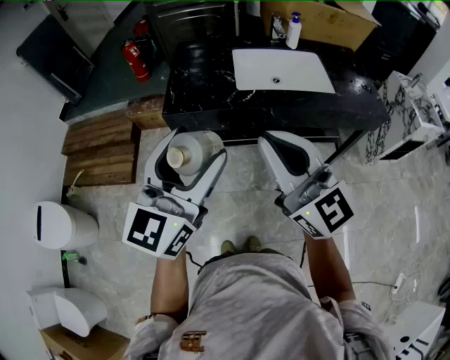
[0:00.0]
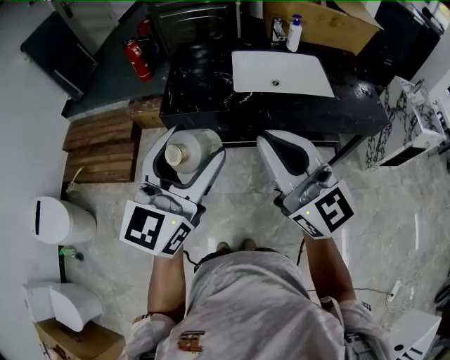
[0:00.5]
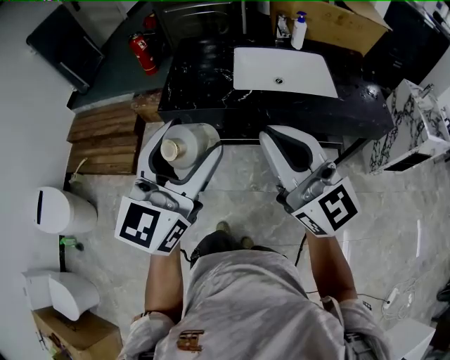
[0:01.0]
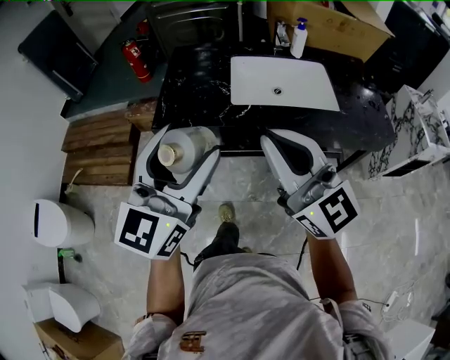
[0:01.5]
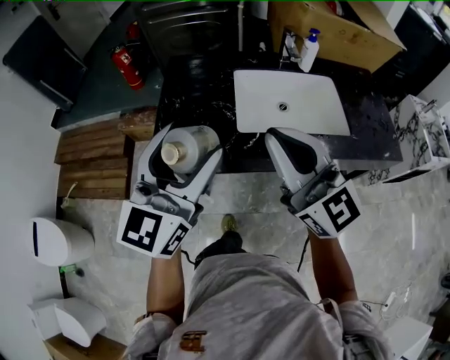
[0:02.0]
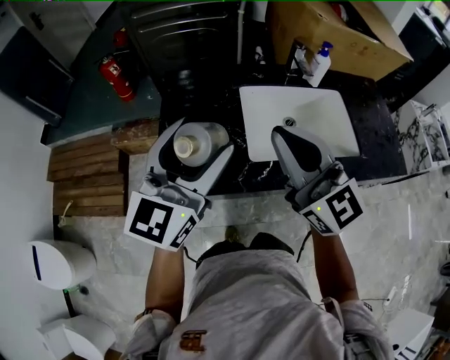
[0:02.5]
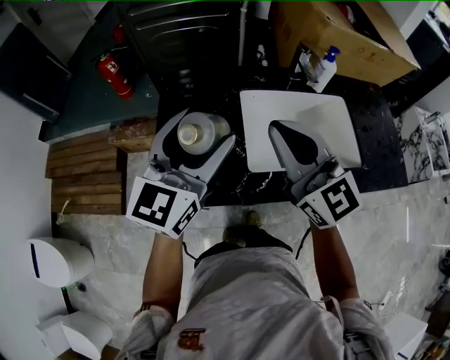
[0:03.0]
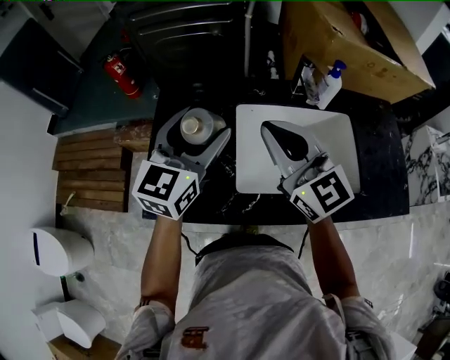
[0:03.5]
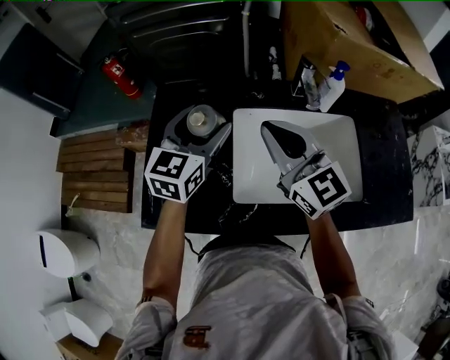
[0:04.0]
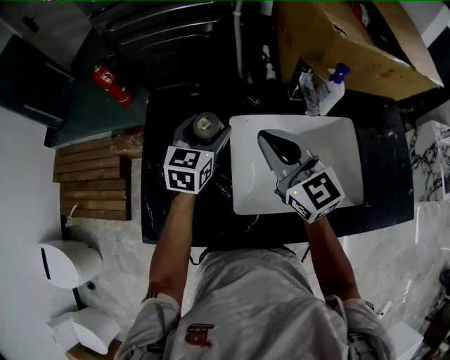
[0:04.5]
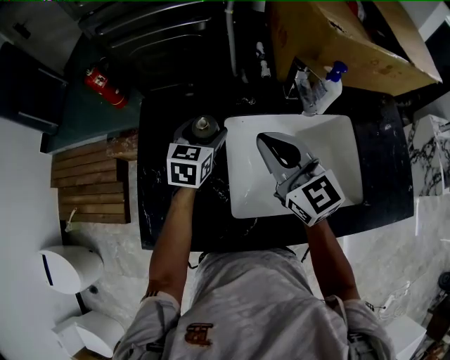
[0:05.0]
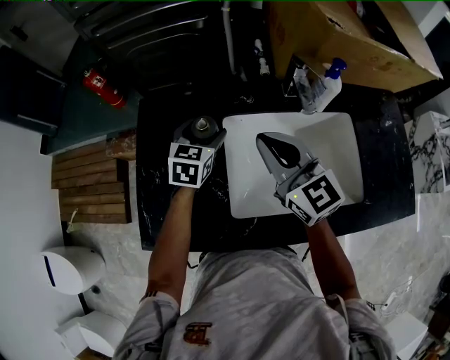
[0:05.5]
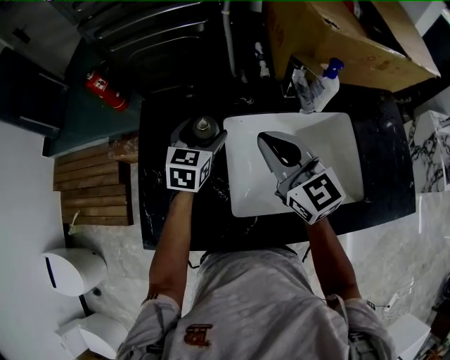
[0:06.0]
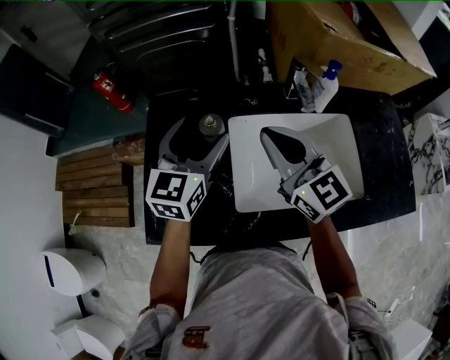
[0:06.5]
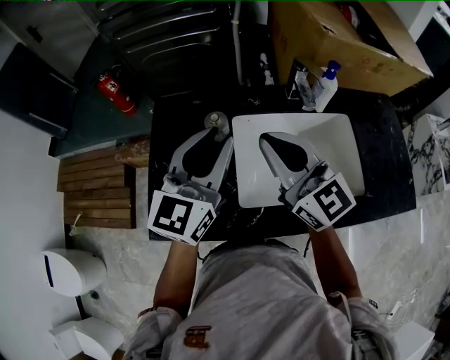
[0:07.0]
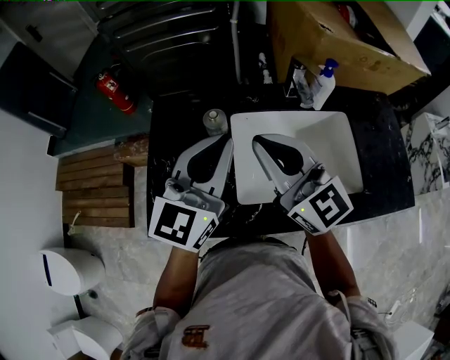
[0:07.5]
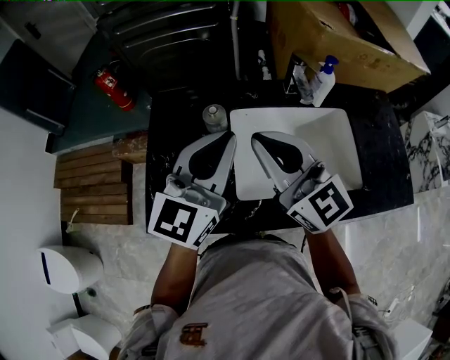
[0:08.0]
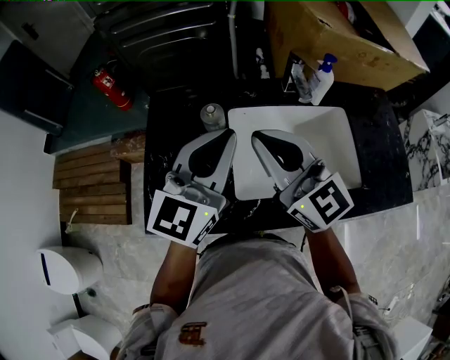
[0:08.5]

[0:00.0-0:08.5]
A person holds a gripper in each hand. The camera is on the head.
0:00.0 to 0:02.0: Both grippers travel together forward, approximately 20 cm.
0:02.0 to 0:04.0: Both grippers move forward, some 30 cm.
0:04.0 to 0:06.5: The left gripper moves about 15 cm downward and comes back.
0:06.5 to 0:08.5: The left gripper shifts some 10 cm backward and upward, and closes its fingers; the right gripper travels backward by about 5 cm.

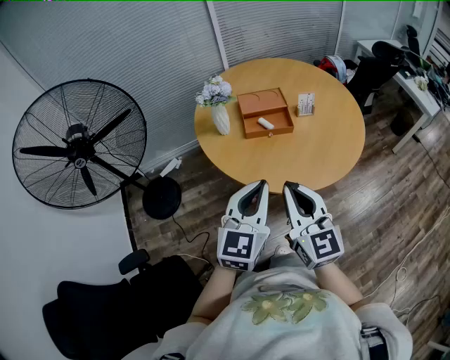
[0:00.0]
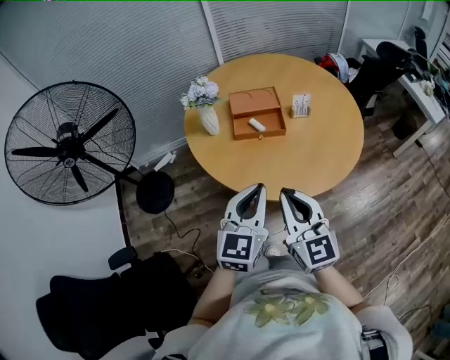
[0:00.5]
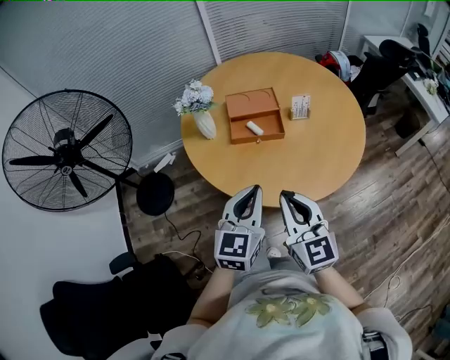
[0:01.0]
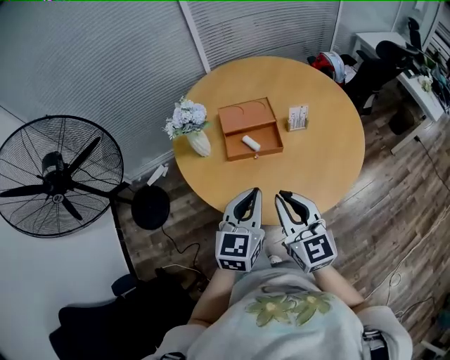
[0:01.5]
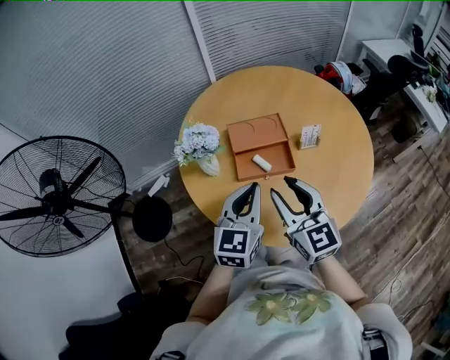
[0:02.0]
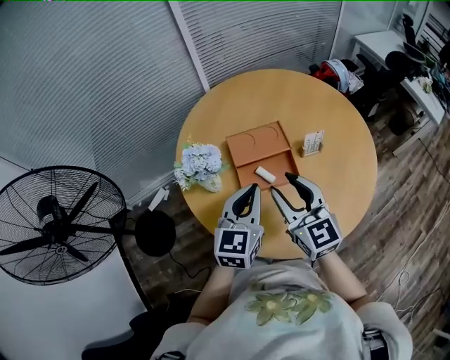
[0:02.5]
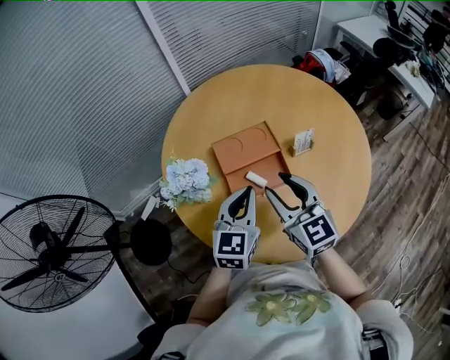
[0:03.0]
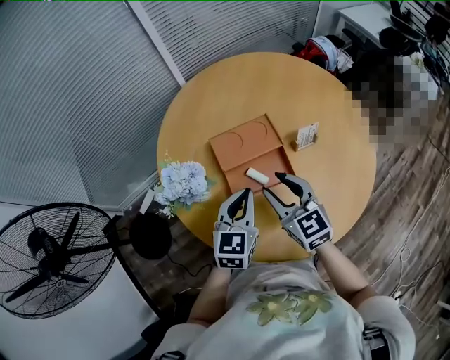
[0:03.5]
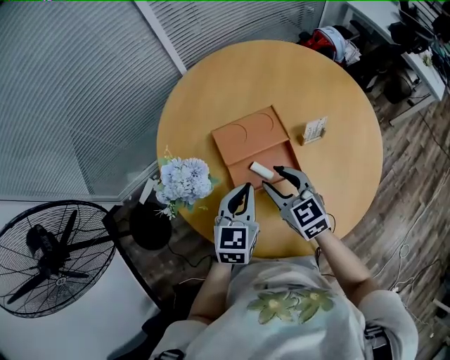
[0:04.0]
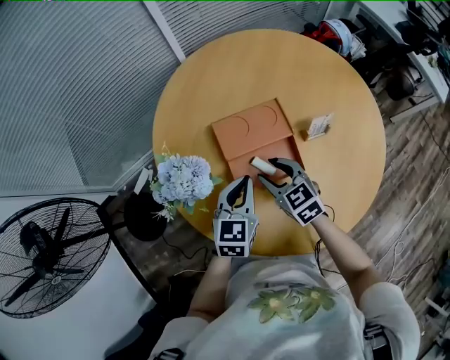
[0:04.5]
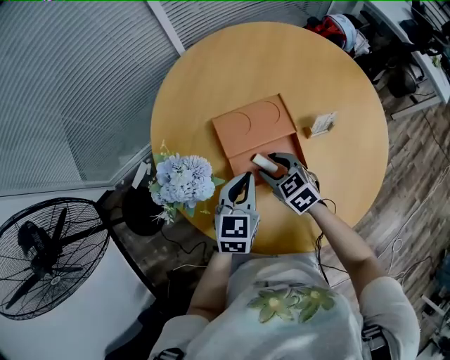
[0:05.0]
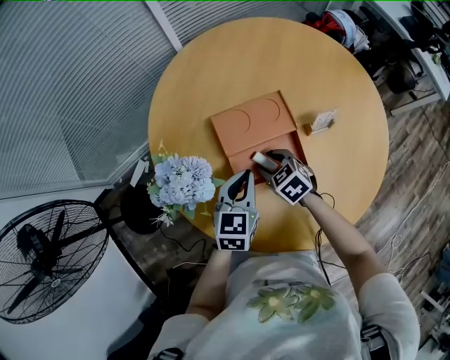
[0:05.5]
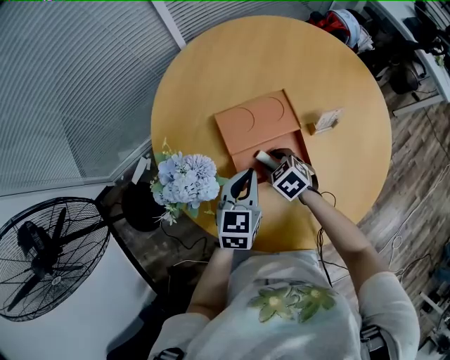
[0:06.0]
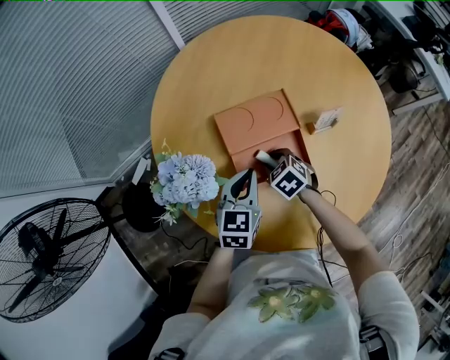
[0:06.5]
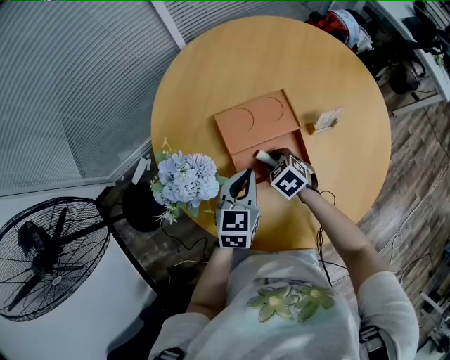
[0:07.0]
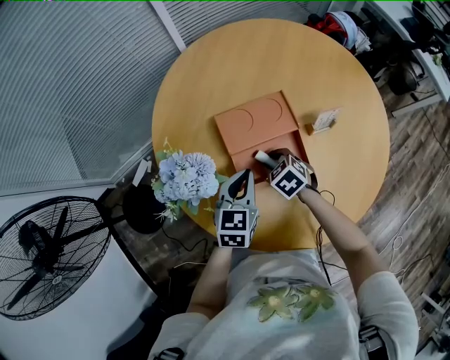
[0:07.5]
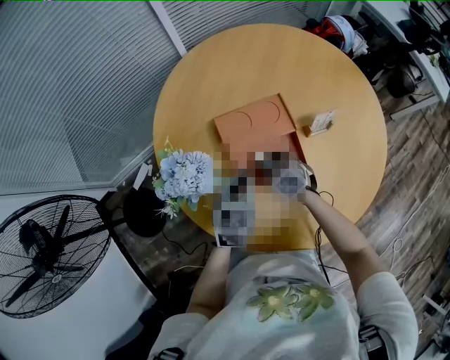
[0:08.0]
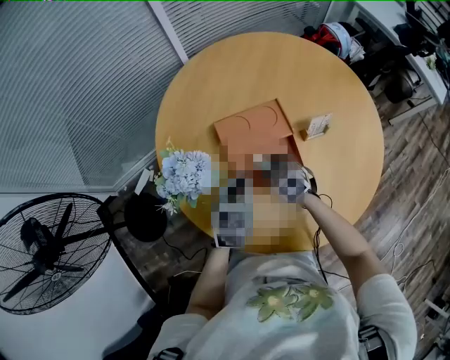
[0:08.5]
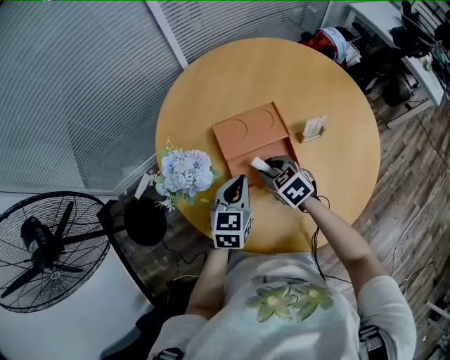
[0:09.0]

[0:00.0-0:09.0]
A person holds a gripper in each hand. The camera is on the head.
0:00.0 to 0:02.0: Both grippers travel together forward, some 30 cm. The right gripper opens its fingers.
0:02.0 to 0:04.5: Both grippers travel together downward and forward, about 25 cm. The right gripper turns by approximately 30 degrees.
0:04.5 to 0:07.0: The right gripper goes about 10 cm downward, and turns by approximately 30 degrees.
0:07.0 to 0:09.0: The right gripper is displaced upward by some 10 cm.

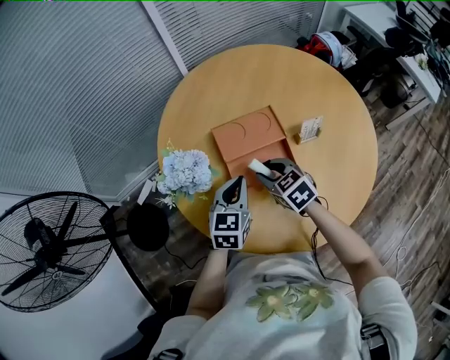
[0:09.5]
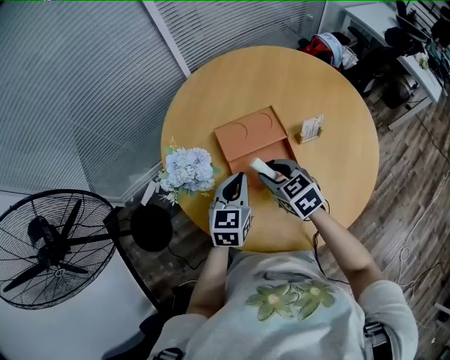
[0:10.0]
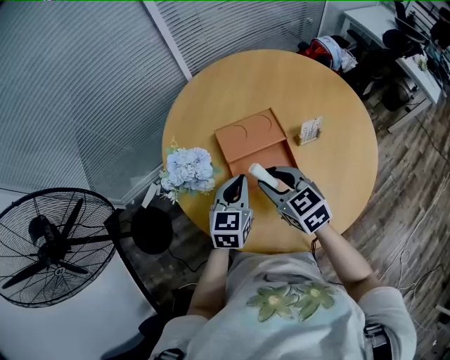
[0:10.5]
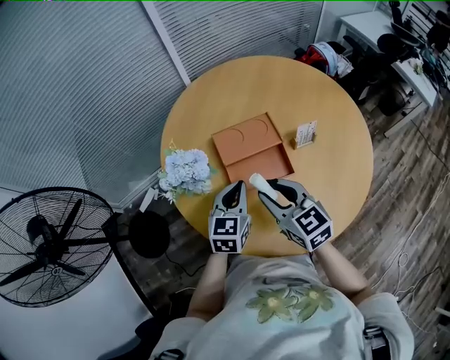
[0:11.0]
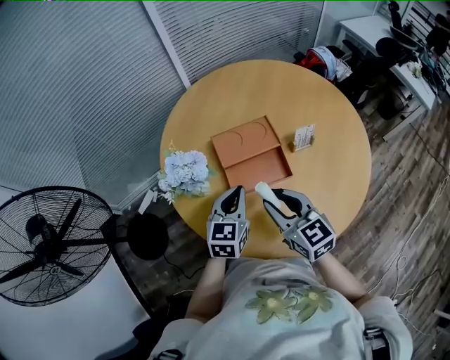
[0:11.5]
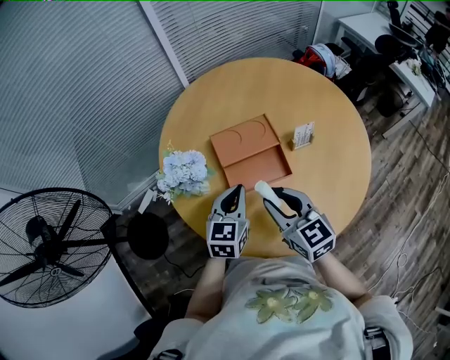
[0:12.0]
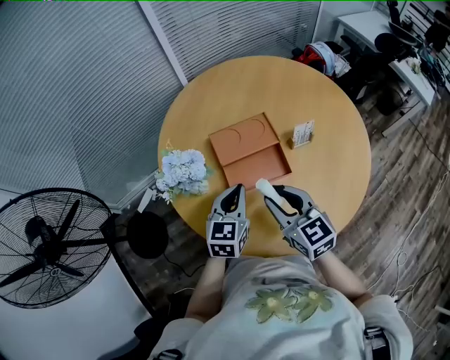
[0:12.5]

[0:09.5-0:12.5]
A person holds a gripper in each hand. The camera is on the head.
0:09.5 to 0:11.0: The right gripper travels upward and backward by roughly 15 cm, and changes its angle by roughly 20 degrees.
0:11.0 to 0:12.5: The grippers make only small movements.

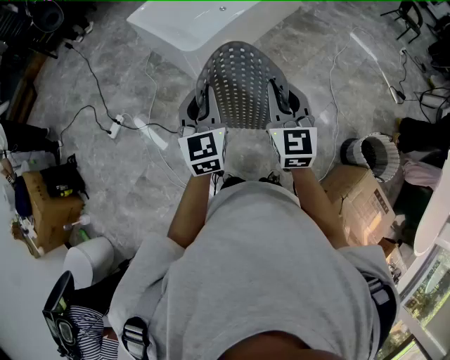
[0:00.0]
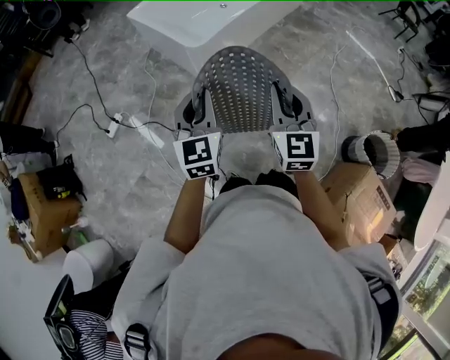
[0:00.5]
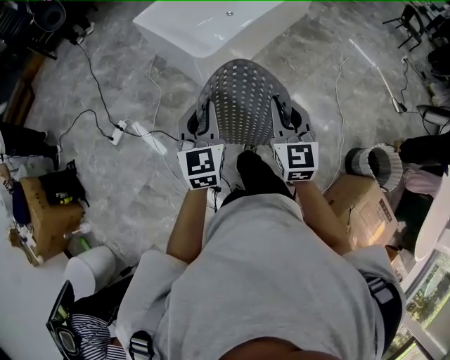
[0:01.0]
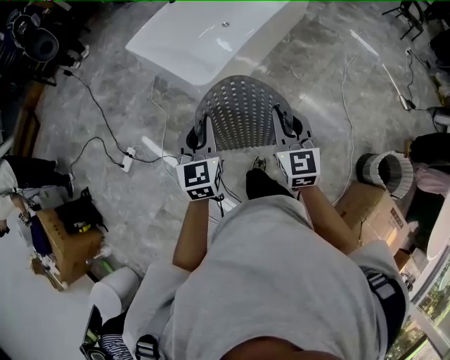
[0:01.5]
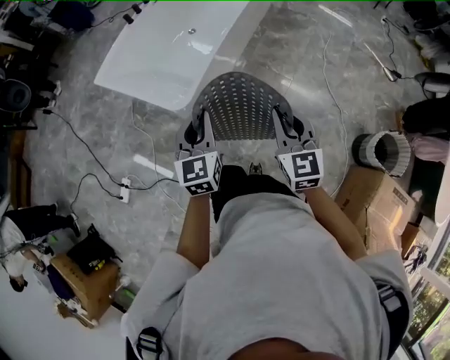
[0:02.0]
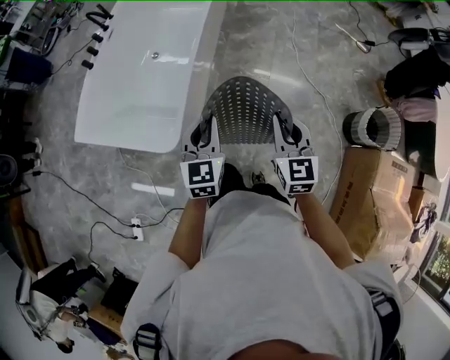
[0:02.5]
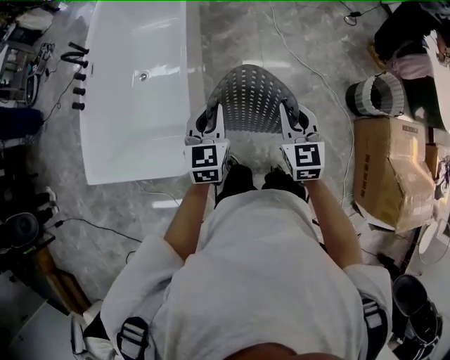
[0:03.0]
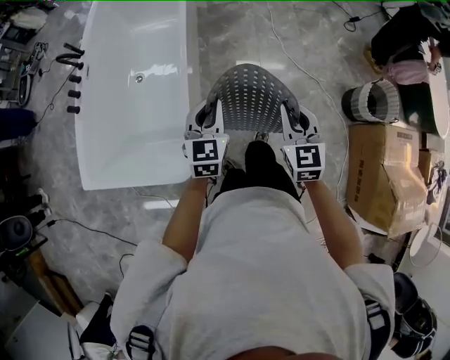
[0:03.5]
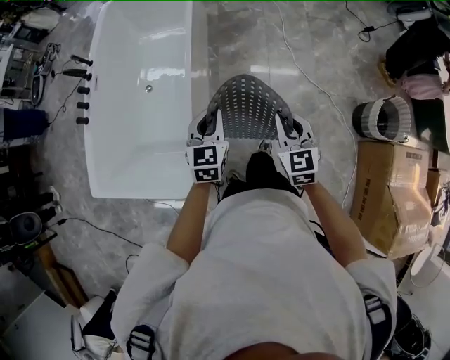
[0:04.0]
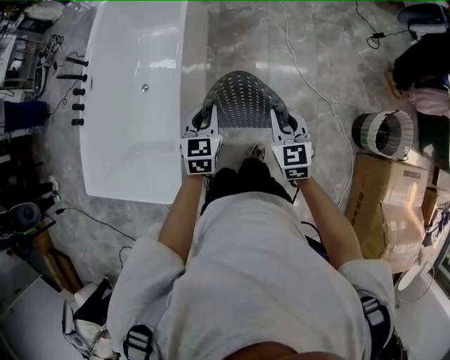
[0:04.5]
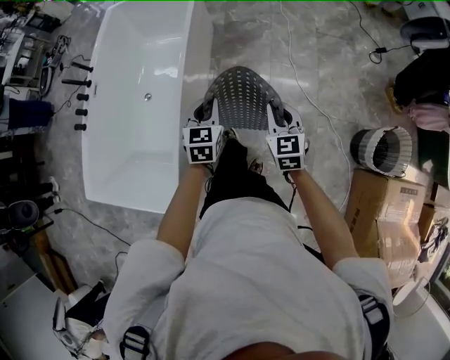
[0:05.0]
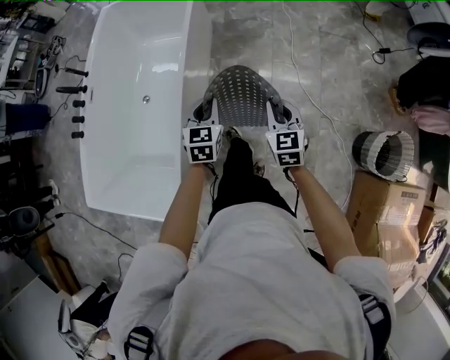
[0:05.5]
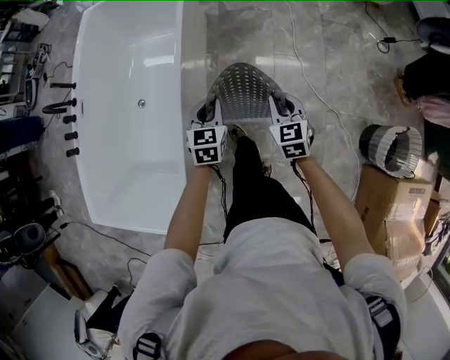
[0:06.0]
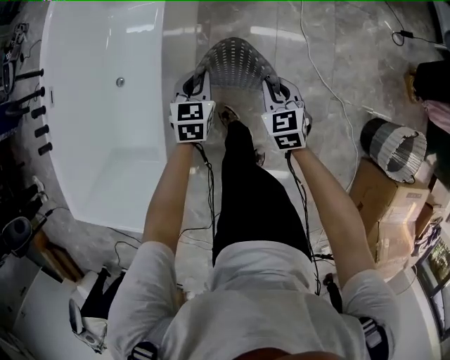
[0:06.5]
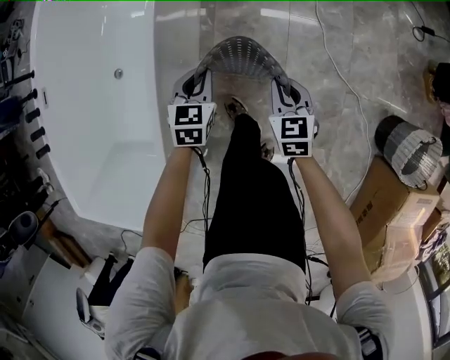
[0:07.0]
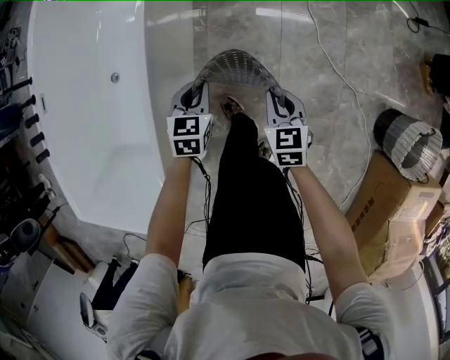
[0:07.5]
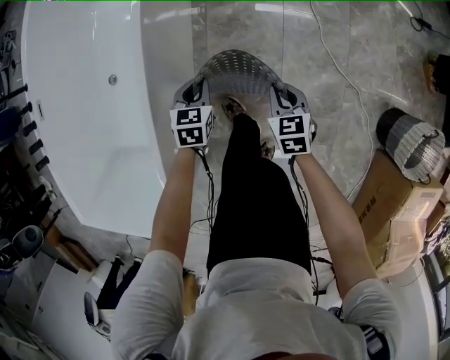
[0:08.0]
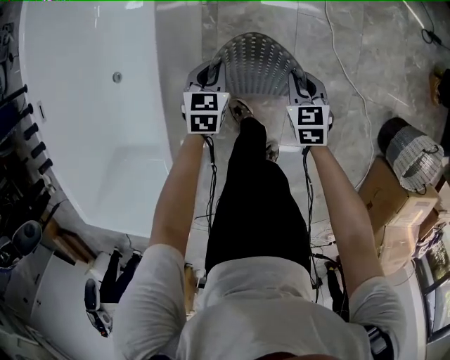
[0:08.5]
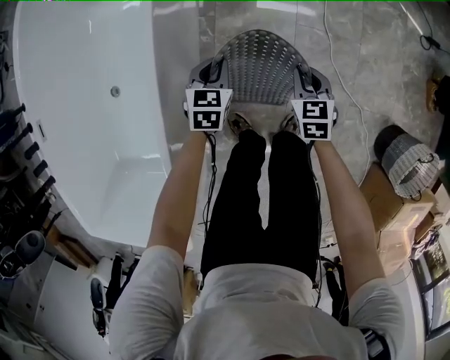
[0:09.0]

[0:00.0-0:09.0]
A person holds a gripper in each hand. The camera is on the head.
0:00.0 to 0:02.0: Both grippers move forward, about 25 cm.
0:02.0 to 0:04.5: The right gripper shifts by roughly 40 cm, and rotates about 30 degrees. The left gripper changes place by roughly 50 cm, and swivels some 40 degrees.
0:04.5 to 0:07.0: The two grippers go approximately 40 cm downward and forward.
0:07.0 to 0:09.0: The grippers both shift forward and downward by approximately 20 cm.
